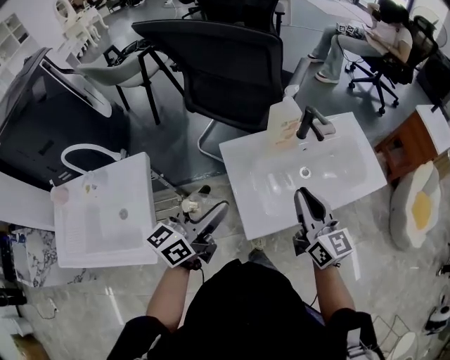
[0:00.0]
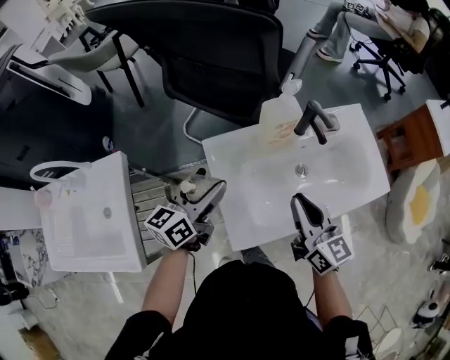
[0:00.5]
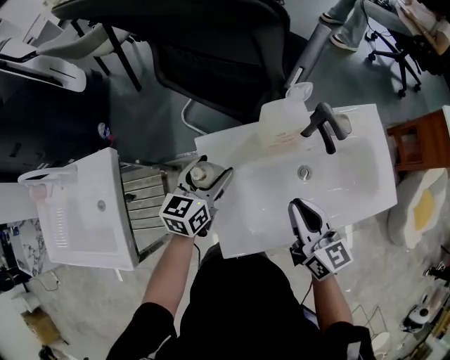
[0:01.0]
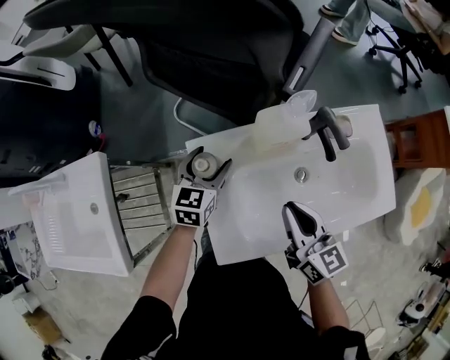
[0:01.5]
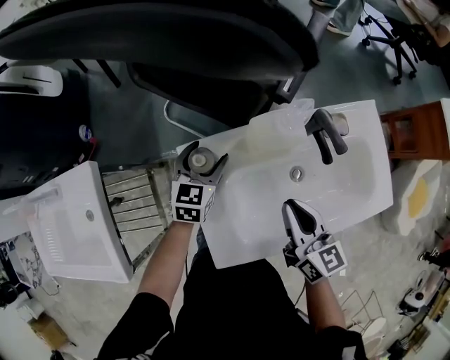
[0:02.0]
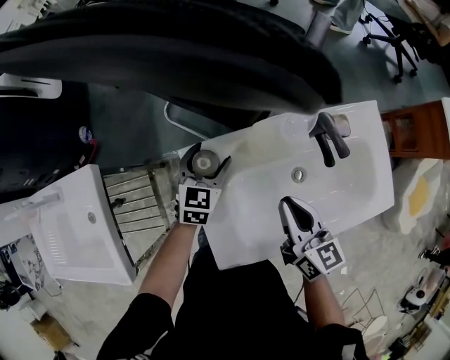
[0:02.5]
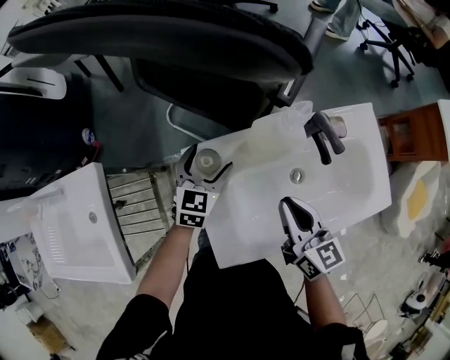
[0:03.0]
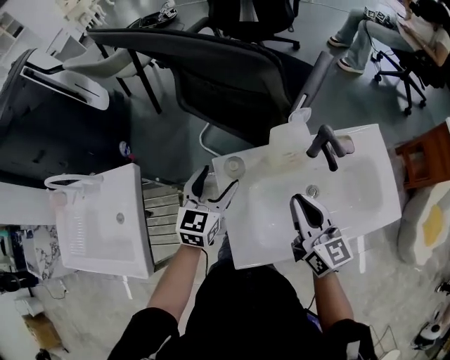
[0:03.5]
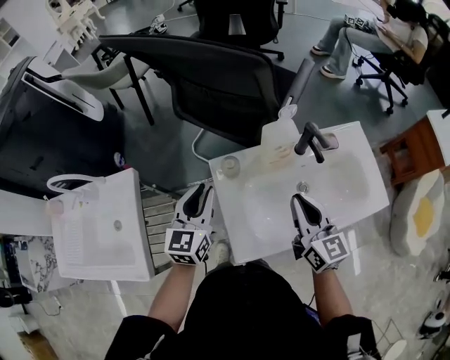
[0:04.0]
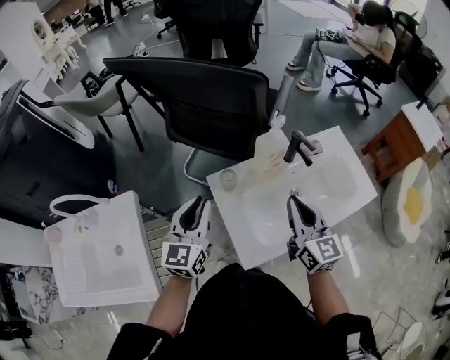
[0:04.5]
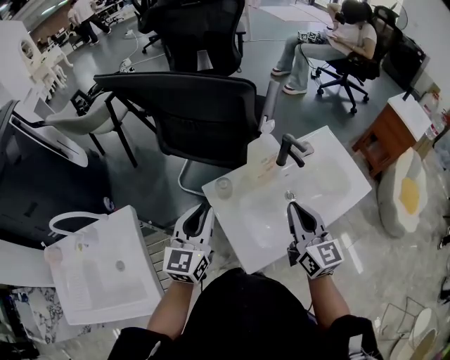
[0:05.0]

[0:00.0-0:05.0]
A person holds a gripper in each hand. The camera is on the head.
0:00.0 to 0:02.5: The left gripper shifts about 35 cm downward and forward, and points its fingers approximately 40 degrees further downward. Meanwhile the right gripper travels downward and forward by about 20 cm, and changes its angle by about 20 degrees.
0:02.5 to 0:05.0: The right gripper moves upward and backward, about 15 cm, and turns by roughly 30 degrees. Meanwhile the left gripper is displaced upward and backward by about 25 cm, turns by roughly 30 degrees, and closes.

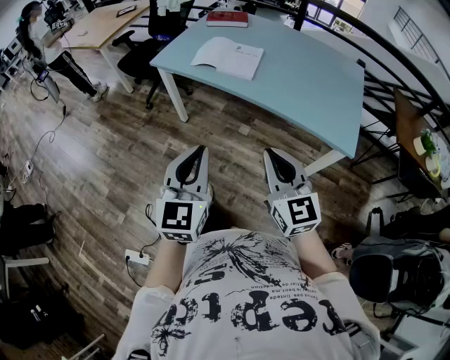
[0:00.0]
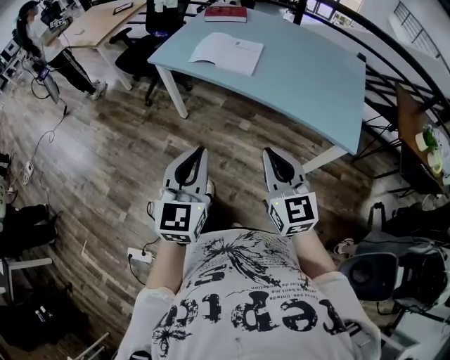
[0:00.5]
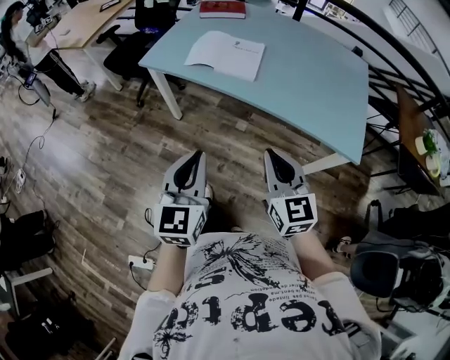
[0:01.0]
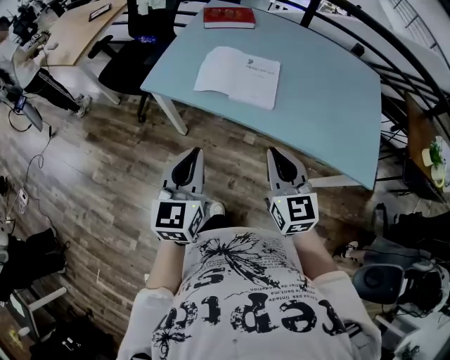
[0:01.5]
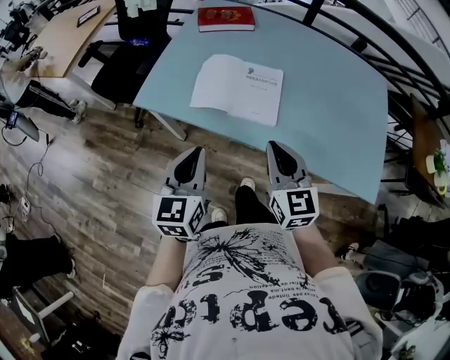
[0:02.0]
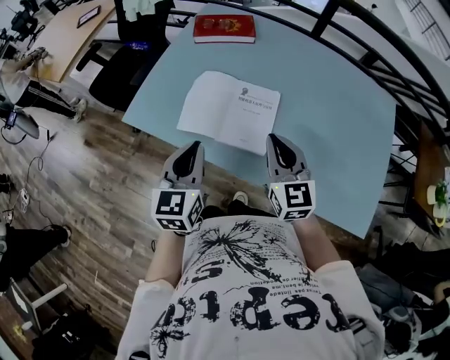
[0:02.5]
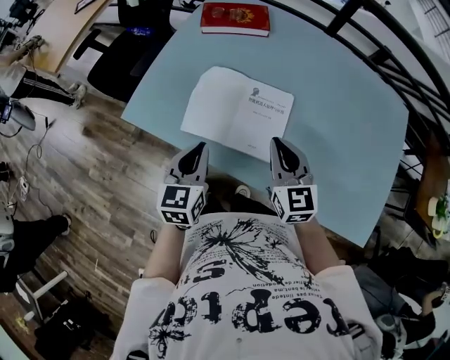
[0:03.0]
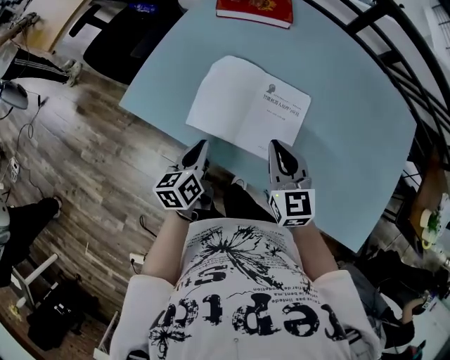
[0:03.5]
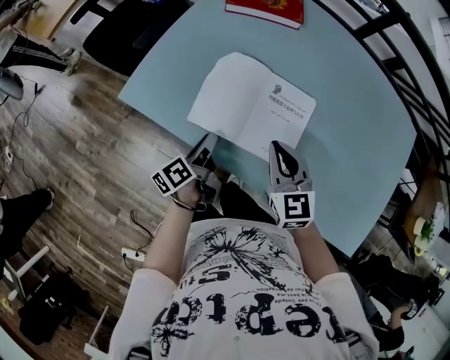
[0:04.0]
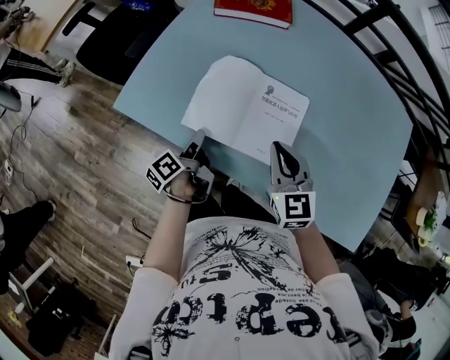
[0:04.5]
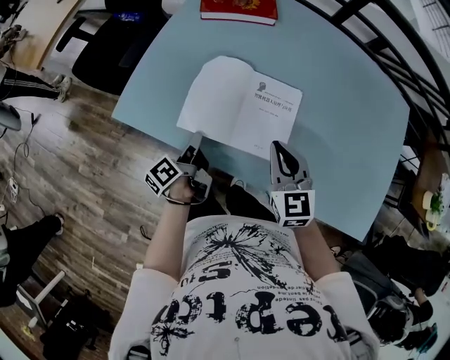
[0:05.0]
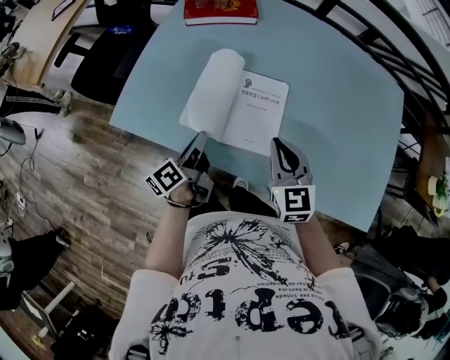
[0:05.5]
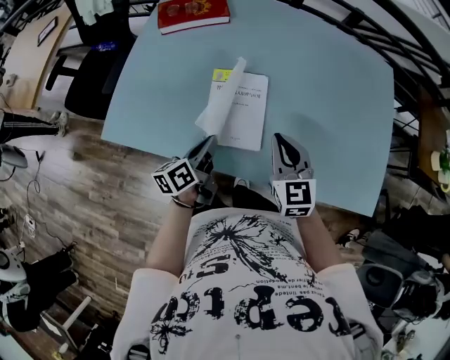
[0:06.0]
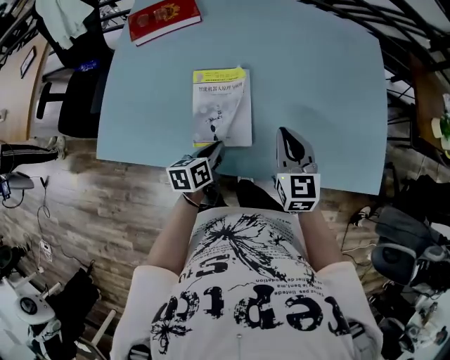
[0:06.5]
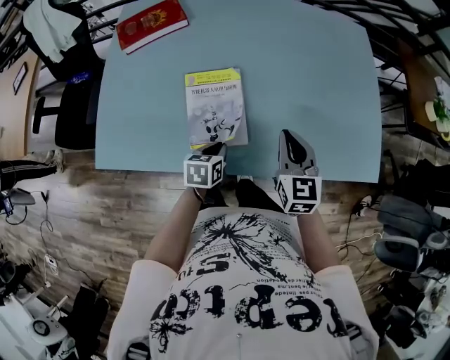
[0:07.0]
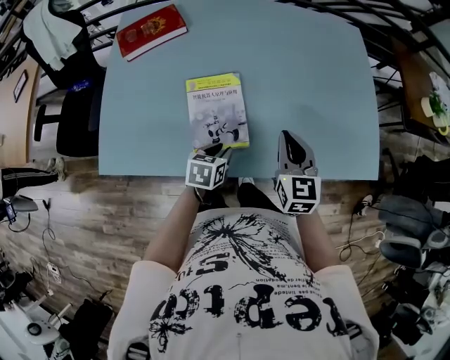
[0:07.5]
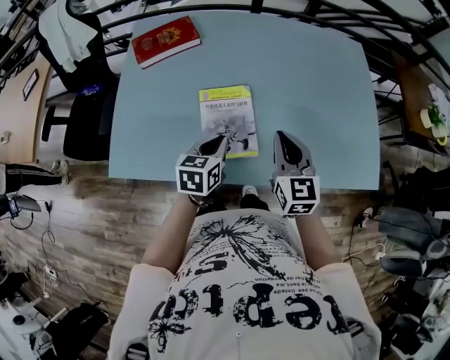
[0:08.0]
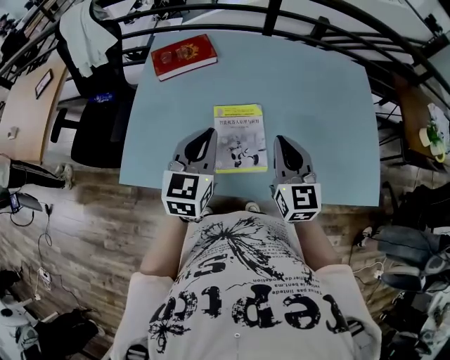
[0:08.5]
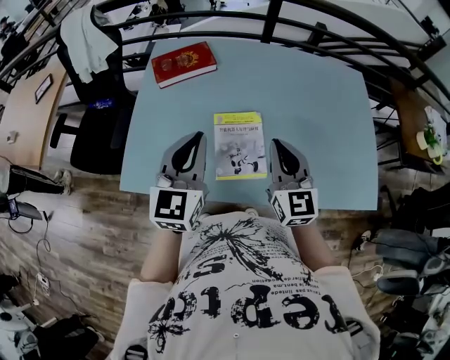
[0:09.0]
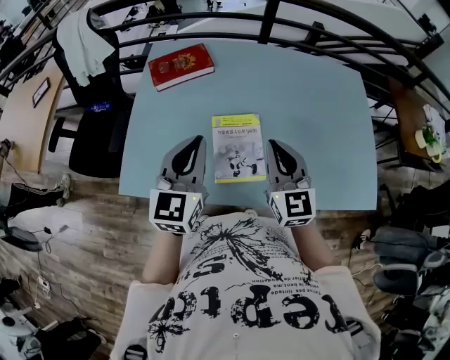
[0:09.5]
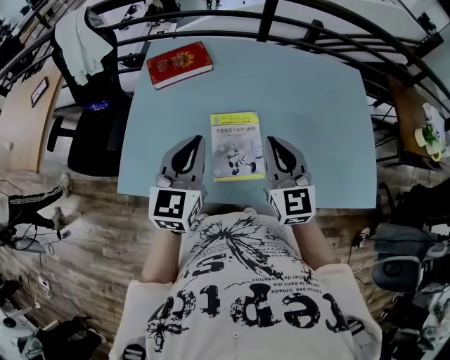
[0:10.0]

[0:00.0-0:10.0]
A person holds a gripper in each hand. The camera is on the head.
0:00.0 to 0:02.0: Both grippers are carried forward, roughly 40 cm.
0:02.0 to 0:04.0: The right gripper shifts some 25 cm forward and downward. The left gripper shifts roughly 30 cm downward and forward, and twists roughly 70 degrees counterclockwise, seen from behind.
0:04.0 to 0:06.0: The right gripper goes about 10 cm to the right. The left gripper travels to the right and upward by approximately 10 cm, and rotates approximately 30 degrees.
0:06.0 to 0:08.0: The grippers both shift upward by approximately 5 cm. The left gripper rotates some 40 degrees, and opens and closes again.
0:08.0 to 0:10.0: The left gripper goes some 20 cm upward and to the left, and rotates approximately 40 degrees. Meanwhile the right gripper heads upward and to the left, covering about 10 cm.

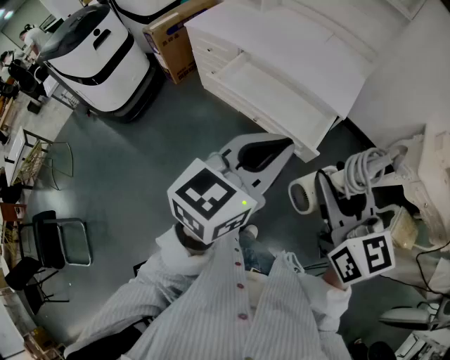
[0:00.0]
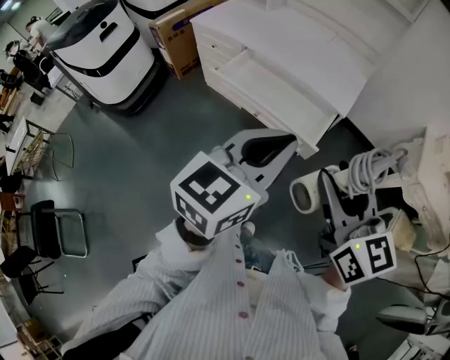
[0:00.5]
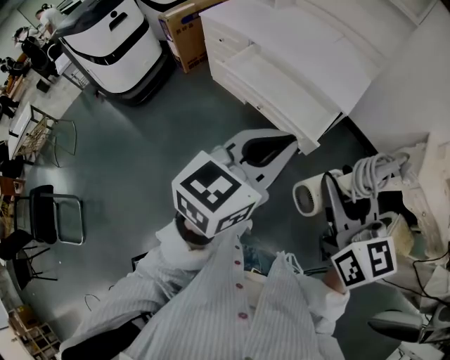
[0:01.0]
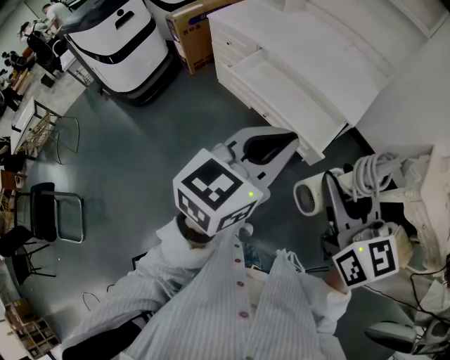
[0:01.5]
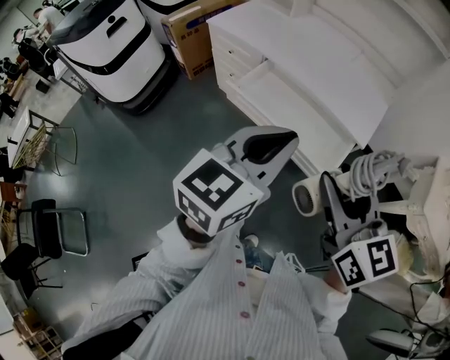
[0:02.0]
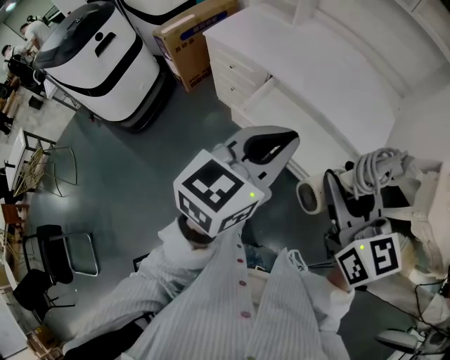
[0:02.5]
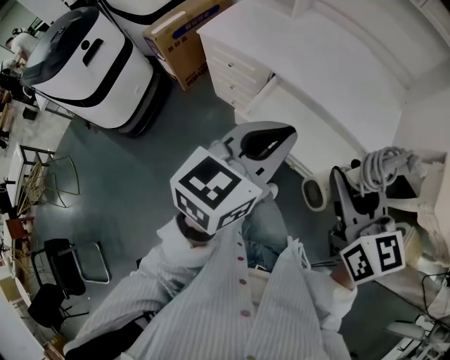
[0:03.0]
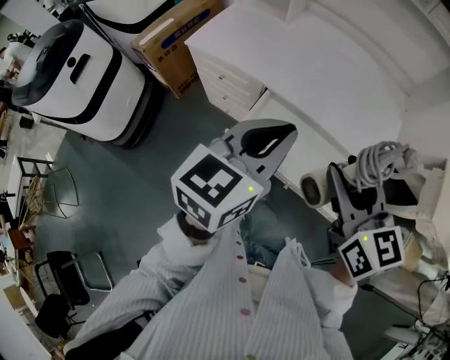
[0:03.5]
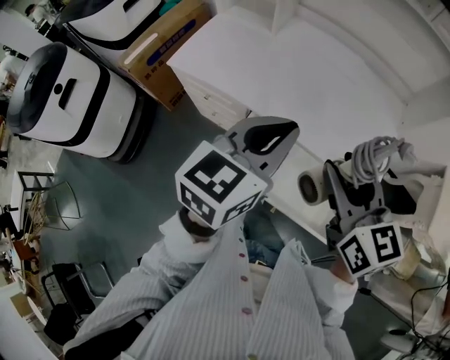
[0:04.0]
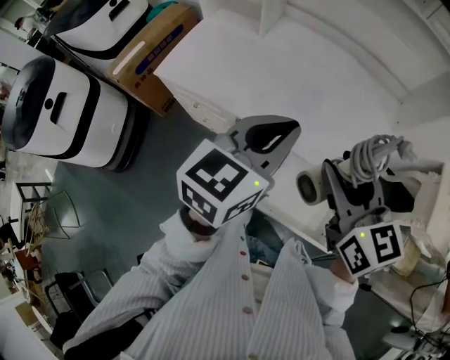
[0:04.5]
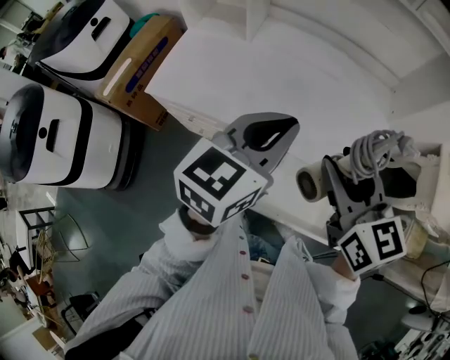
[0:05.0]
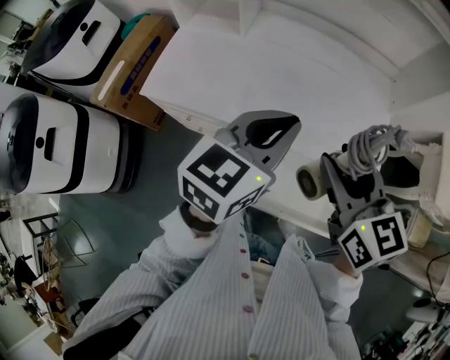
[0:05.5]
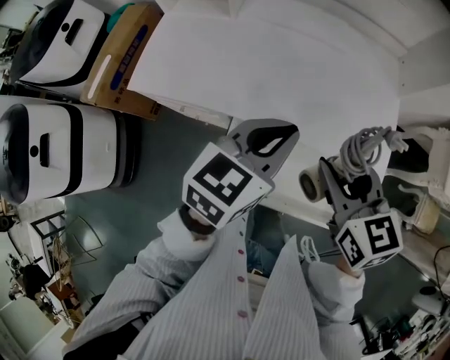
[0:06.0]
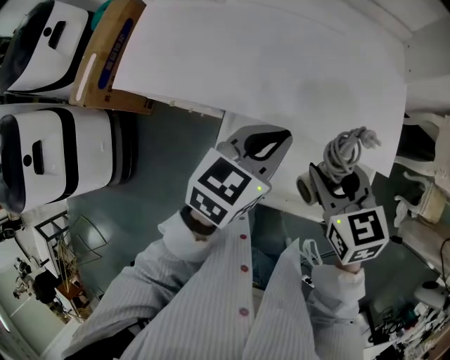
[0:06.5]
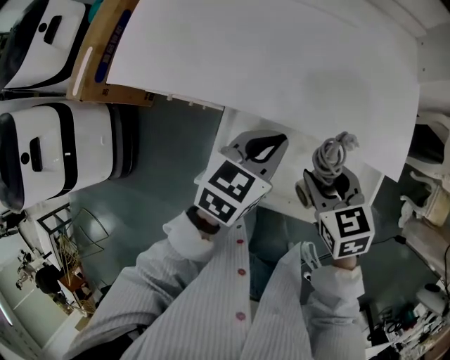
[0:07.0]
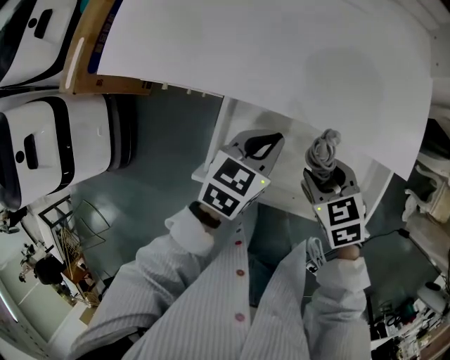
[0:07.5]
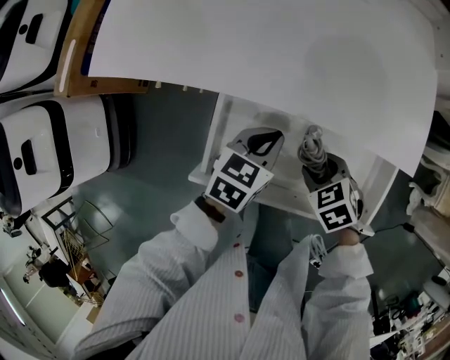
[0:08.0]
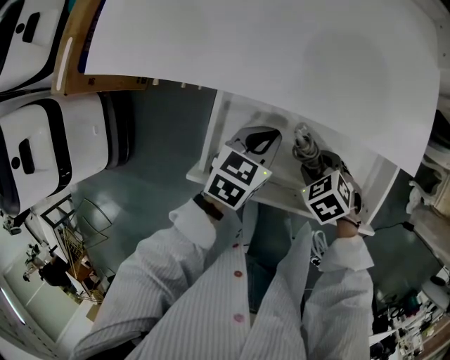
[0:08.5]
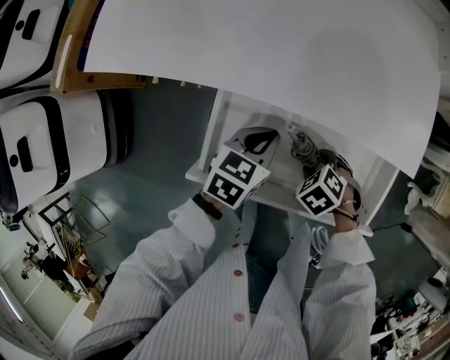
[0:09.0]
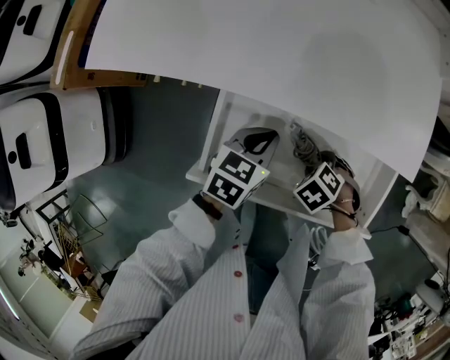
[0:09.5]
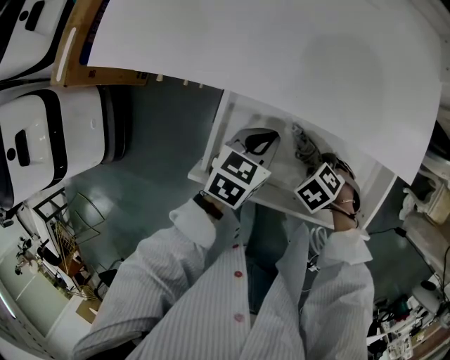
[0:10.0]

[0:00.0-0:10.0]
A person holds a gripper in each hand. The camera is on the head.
0:00.0 to 0:02.0: The grippers both shift forward and to the left by roughly 10 cm.
0:02.0 to 0:04.0: The two grippers go about 35 cm forward.
0:04.0 to 0:06.0: The left gripper goes some 10 cm forward and downward, while the right gripper is displaced downward and forward by some 10 cm.
0:06.0 to 0:08.0: The two grippers go roughly 30 cm downward. The right gripper points its fingers approximately 40 degrees further downward. The left gripper changes its angle by some 20 degrees.
0:08.0 to 0:10.0: The right gripper goes some 5 cm downward, and turns by some 30 degrees.

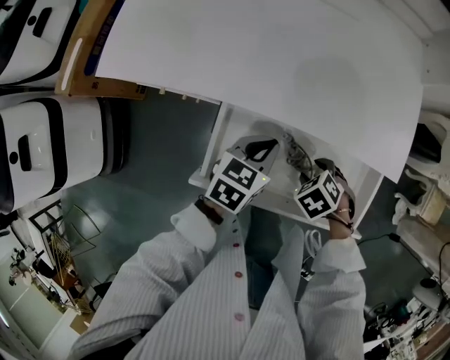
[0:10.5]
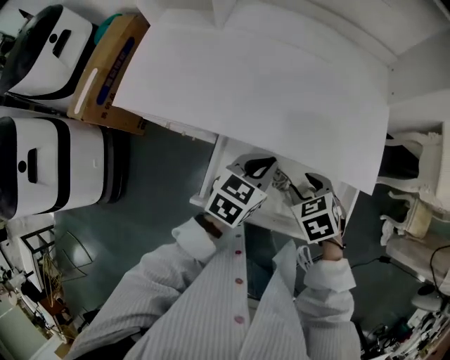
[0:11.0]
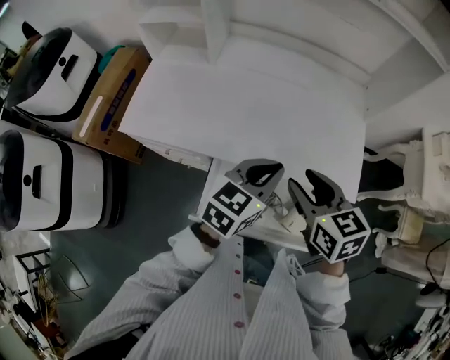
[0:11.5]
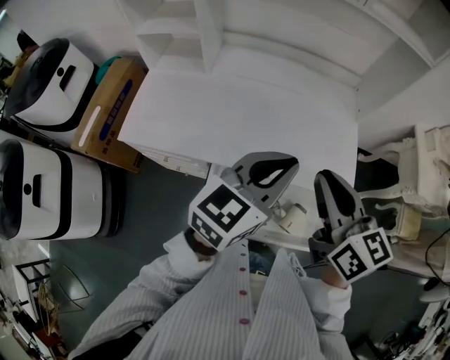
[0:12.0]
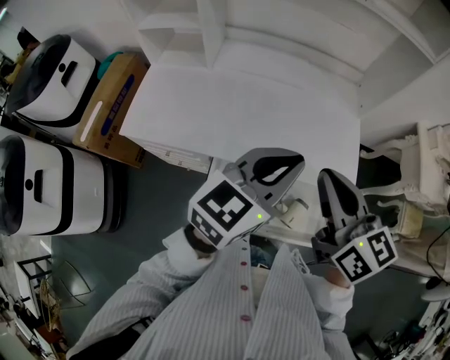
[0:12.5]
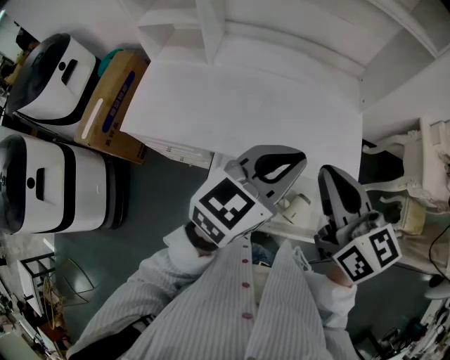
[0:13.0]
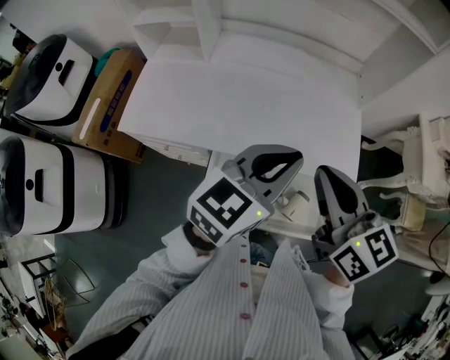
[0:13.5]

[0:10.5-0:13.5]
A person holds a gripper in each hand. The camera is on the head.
0:10.5 to 0:12.0: The grippers both shift upward by roughly 40 cm. The right gripper tips its fingers upward by approximately 70 degrees, and closes up. Meanwhile the left gripper tilts its fingers about 30 degrees upward.
0:12.0 to 0:13.5: There are only small adjustments of the grippers.
